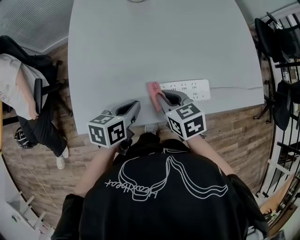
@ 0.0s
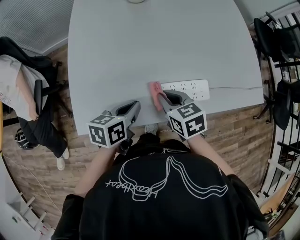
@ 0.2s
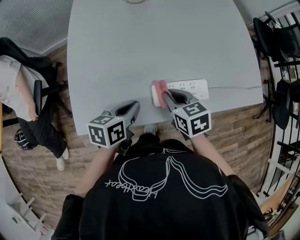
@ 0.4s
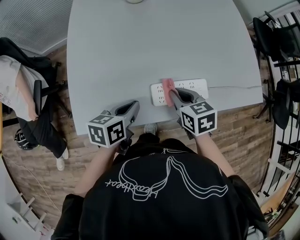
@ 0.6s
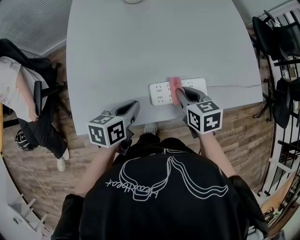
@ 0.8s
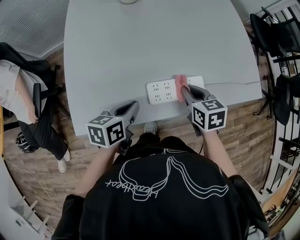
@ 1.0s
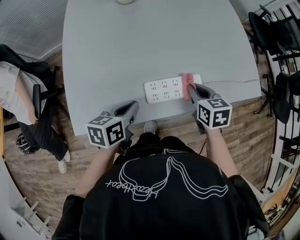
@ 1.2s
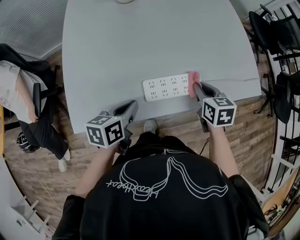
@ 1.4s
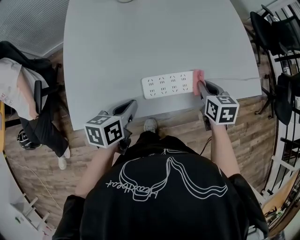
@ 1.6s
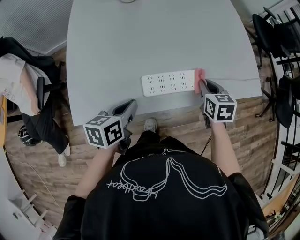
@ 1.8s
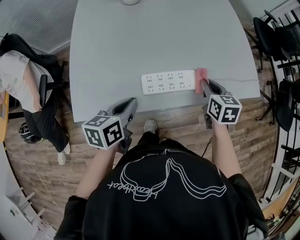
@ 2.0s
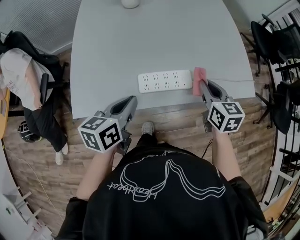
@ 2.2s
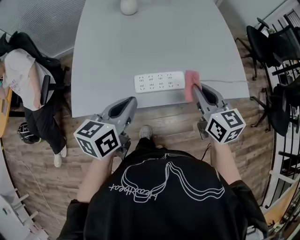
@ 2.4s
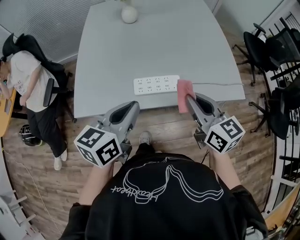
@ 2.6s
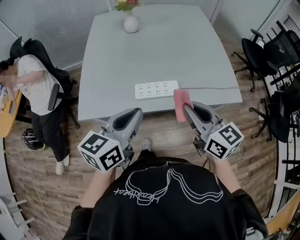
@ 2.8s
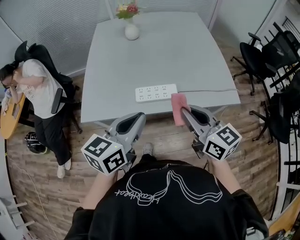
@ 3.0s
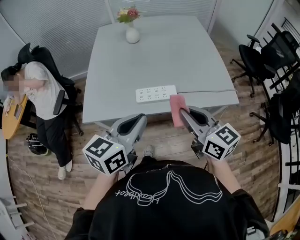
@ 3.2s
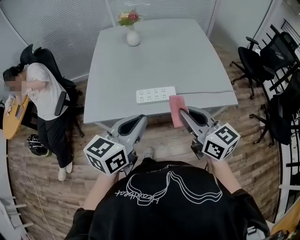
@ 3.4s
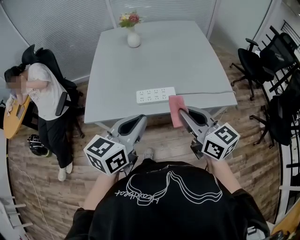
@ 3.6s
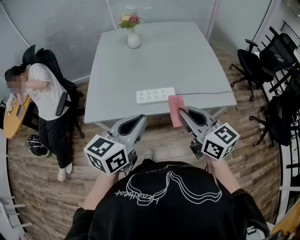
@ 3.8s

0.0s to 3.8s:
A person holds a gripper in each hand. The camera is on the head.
0.0s to 1.2s: The right gripper shifts approximately 15 cm to the right.
1.2s to 2.6s: The right gripper moves upward and backward, about 25 cm, and tips its fingers upward by about 30 degrees. The left gripper heads upward, to the right and backward, covering roughly 25 cm, and rotates approximately 30 degrees.
2.6s to 3.8s: Both grippers move backward and upward, roughly 15 cm.

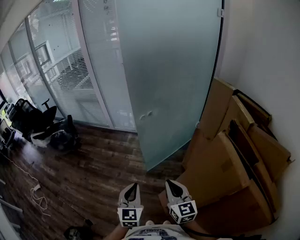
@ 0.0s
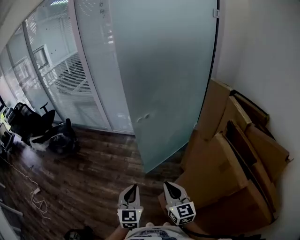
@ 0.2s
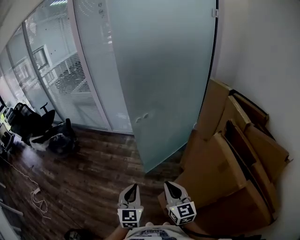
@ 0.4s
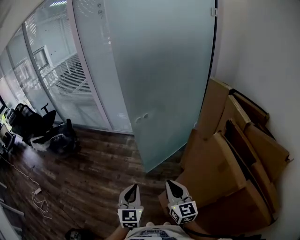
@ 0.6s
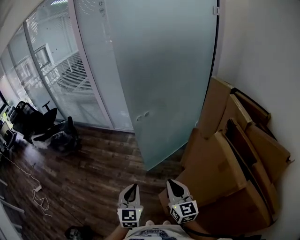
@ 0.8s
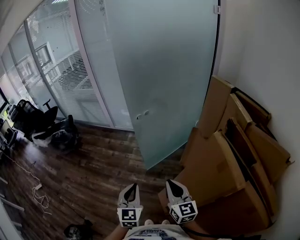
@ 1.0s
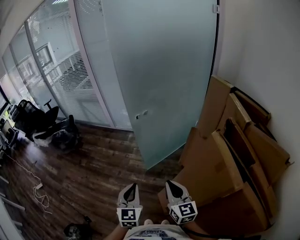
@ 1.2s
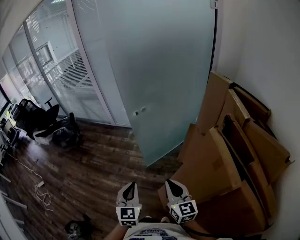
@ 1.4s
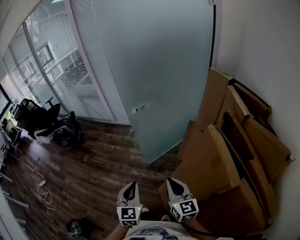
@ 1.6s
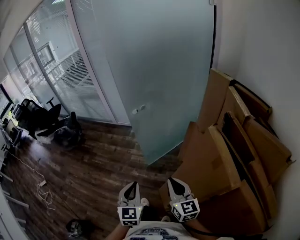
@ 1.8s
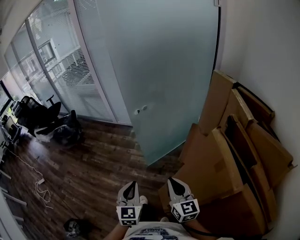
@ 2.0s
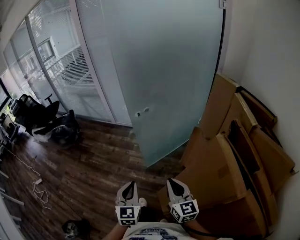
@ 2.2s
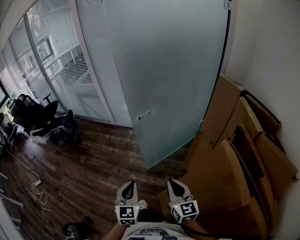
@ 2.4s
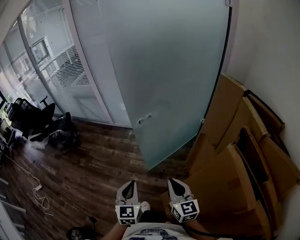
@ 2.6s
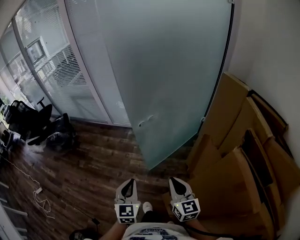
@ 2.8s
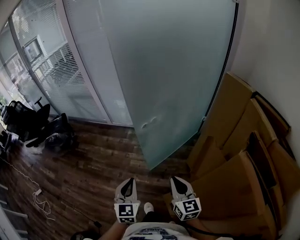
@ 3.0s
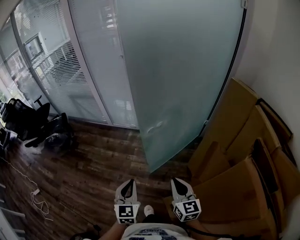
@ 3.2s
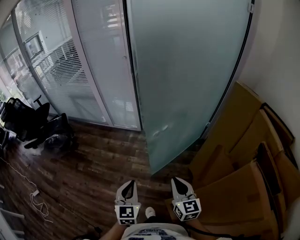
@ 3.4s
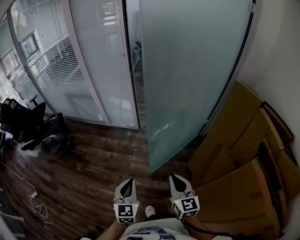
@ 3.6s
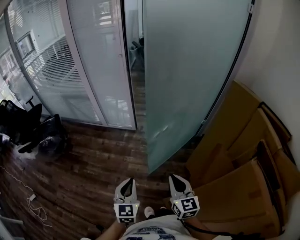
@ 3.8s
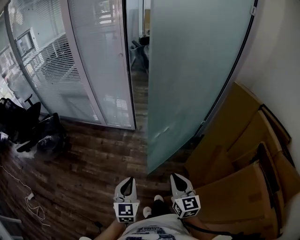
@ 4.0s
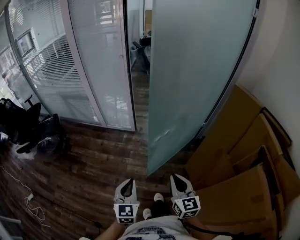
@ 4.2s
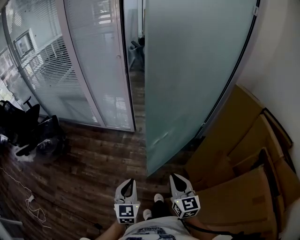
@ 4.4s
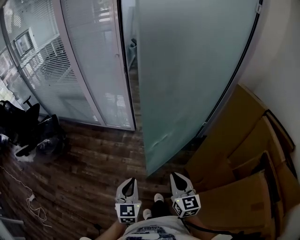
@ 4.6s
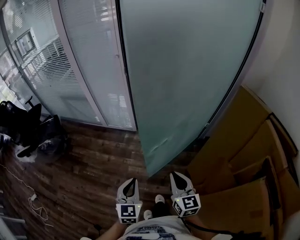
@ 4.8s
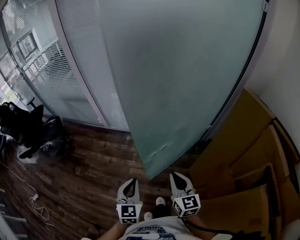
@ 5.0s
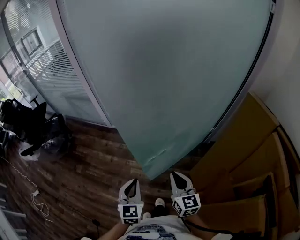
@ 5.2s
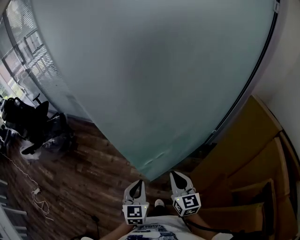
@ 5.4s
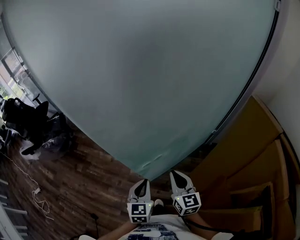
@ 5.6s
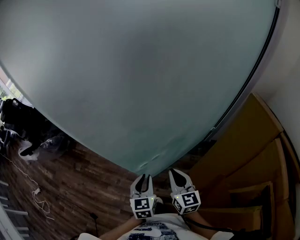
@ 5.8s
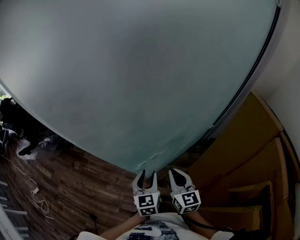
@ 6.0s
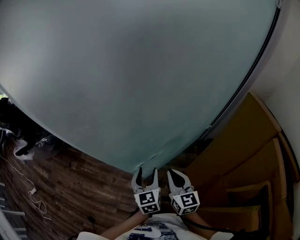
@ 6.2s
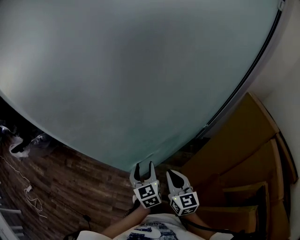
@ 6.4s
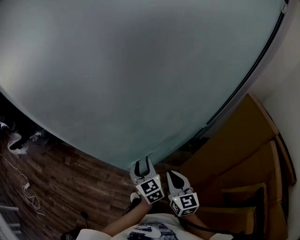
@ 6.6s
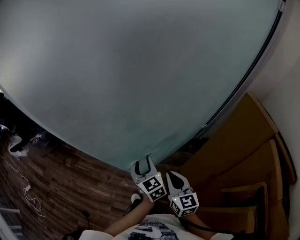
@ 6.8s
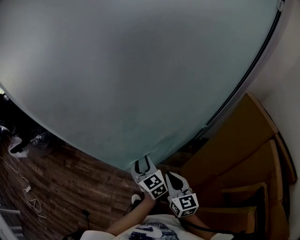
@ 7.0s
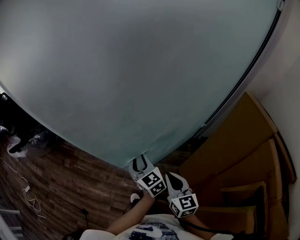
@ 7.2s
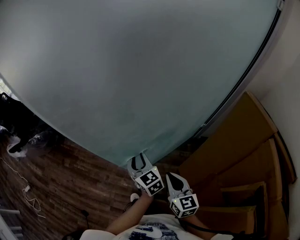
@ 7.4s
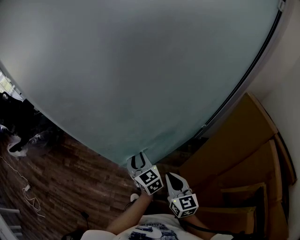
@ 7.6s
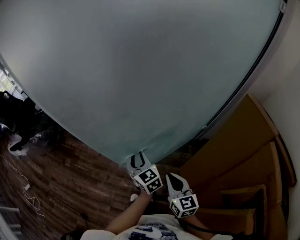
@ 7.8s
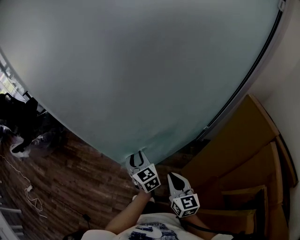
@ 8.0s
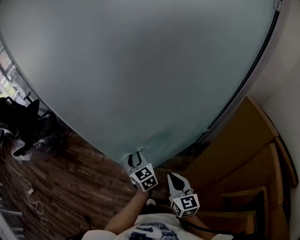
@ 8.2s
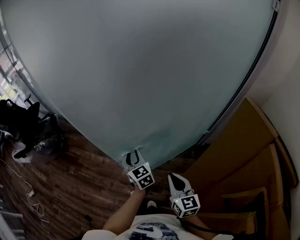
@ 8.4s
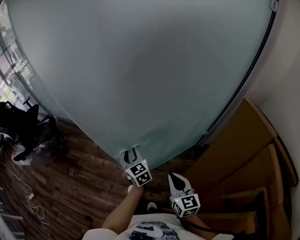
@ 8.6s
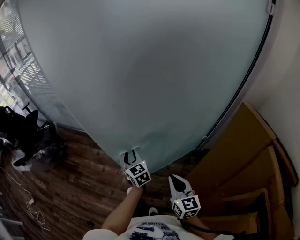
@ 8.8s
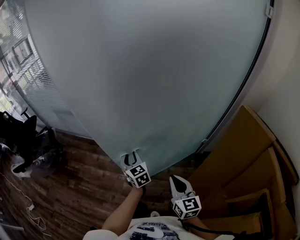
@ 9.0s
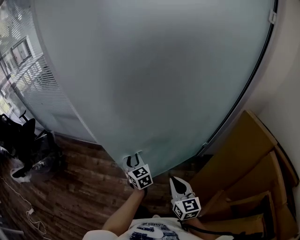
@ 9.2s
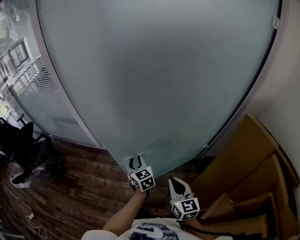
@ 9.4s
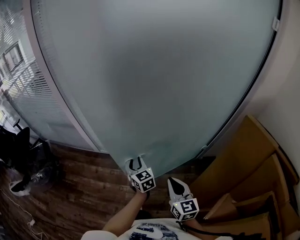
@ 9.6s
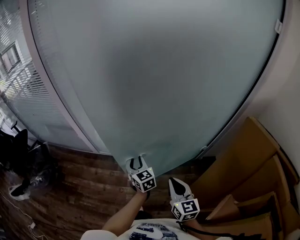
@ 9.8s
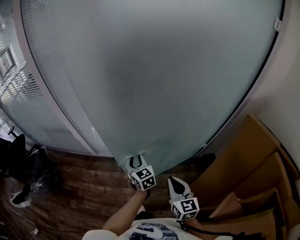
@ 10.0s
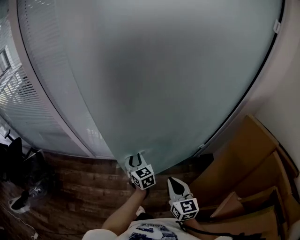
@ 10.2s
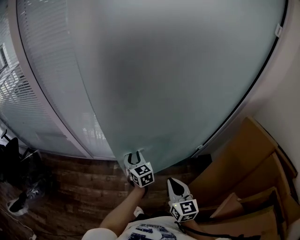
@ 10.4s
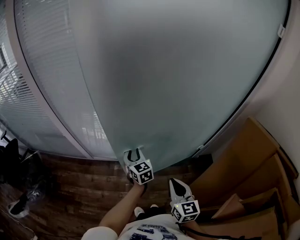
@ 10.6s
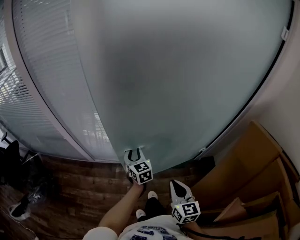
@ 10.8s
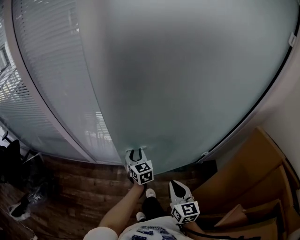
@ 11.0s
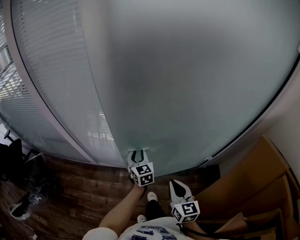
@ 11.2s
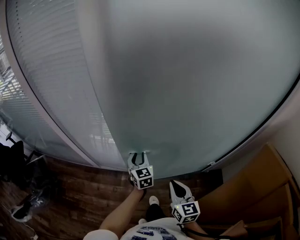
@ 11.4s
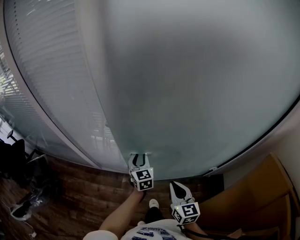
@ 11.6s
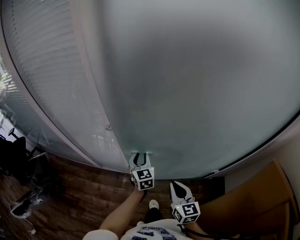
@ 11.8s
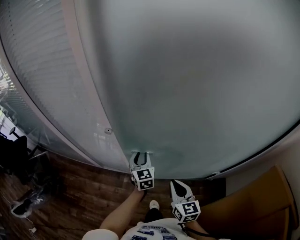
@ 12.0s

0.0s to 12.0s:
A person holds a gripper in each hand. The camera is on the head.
0.0s to 1.6s: Both grippers travel together to the right, approximately 5 cm.
1.6s to 3.0s: The grippers both shift forward by roughly 20 cm.
3.0s to 4.4s: The grippers both shift forward and to the left by about 10 cm.
4.4s to 6.0s: The left gripper travels to the right and forward by approximately 20 cm, and opens its fingers, while the right gripper is displaced forward and to the right by about 15 cm.
6.0s to 7.6s: The left gripper heads forward, covering some 10 cm, and swivels roughly 20 degrees.
7.6s to 9.0s: The right gripper goes some 5 cm forward; the left gripper shifts roughly 15 cm forward.
9.0s to 10.4s: The right gripper shifts some 15 cm forward and to the left. The left gripper moves forward, about 15 cm.
10.4s to 12.0s: The grippers both shift forward by some 25 cm.

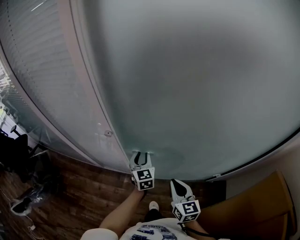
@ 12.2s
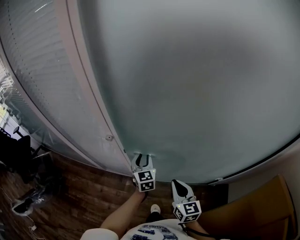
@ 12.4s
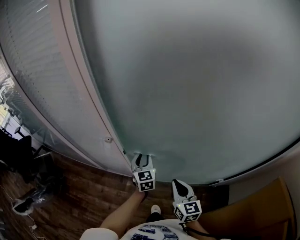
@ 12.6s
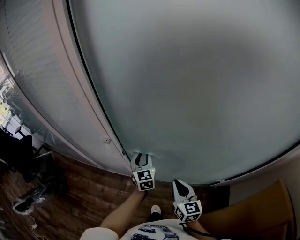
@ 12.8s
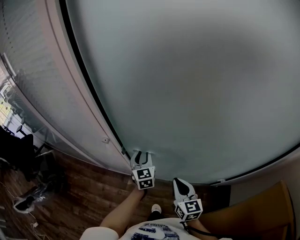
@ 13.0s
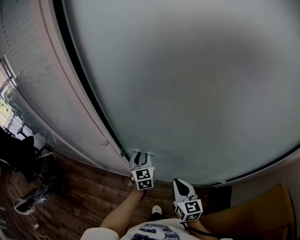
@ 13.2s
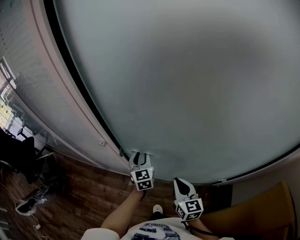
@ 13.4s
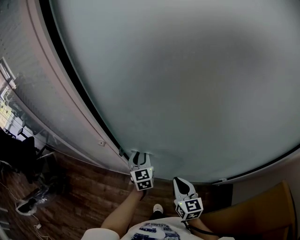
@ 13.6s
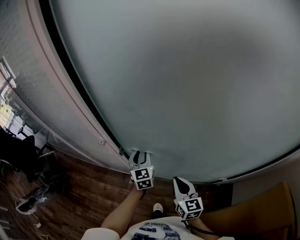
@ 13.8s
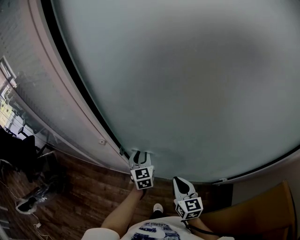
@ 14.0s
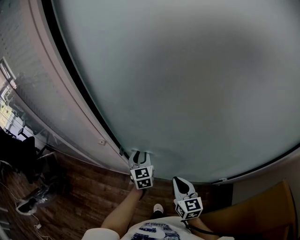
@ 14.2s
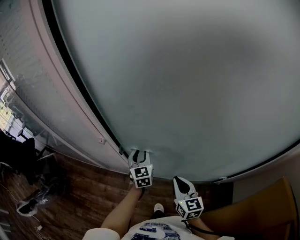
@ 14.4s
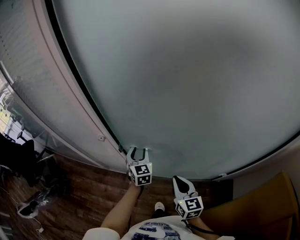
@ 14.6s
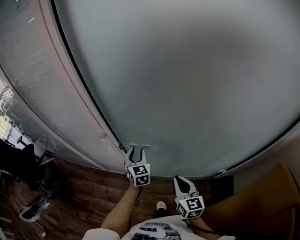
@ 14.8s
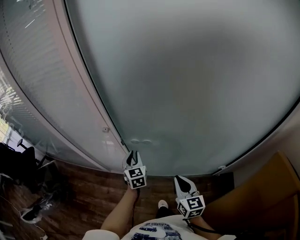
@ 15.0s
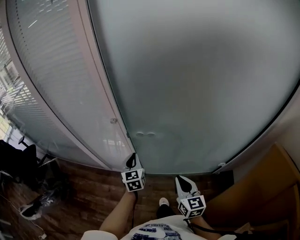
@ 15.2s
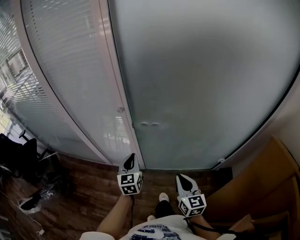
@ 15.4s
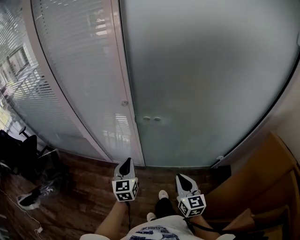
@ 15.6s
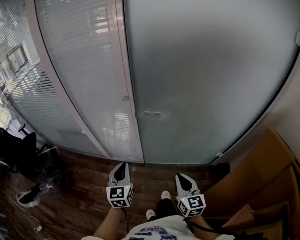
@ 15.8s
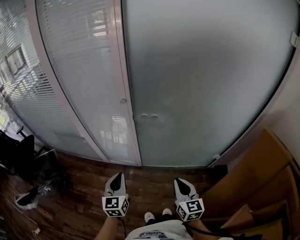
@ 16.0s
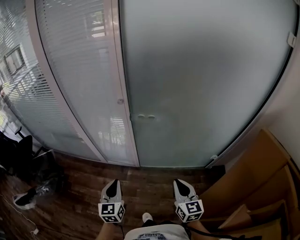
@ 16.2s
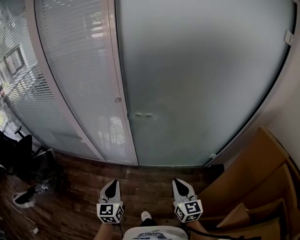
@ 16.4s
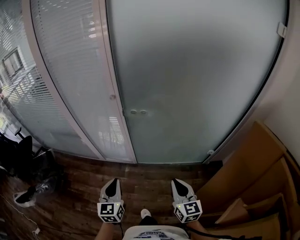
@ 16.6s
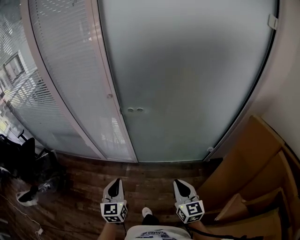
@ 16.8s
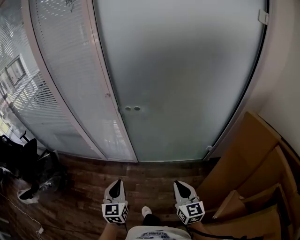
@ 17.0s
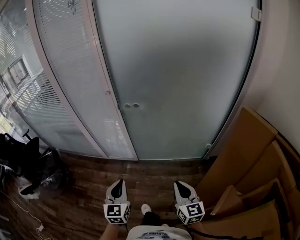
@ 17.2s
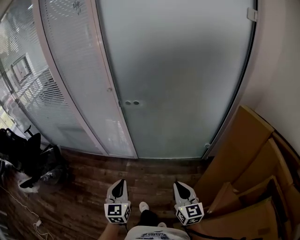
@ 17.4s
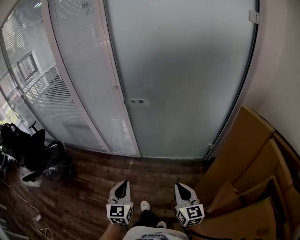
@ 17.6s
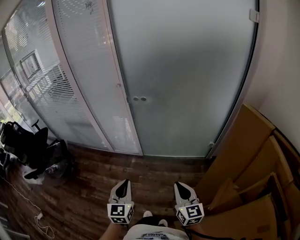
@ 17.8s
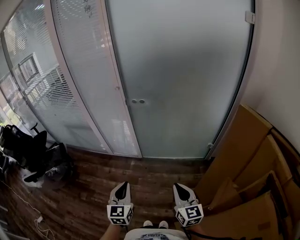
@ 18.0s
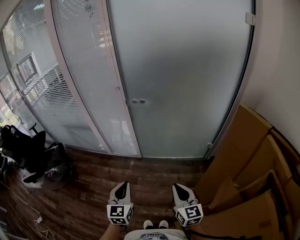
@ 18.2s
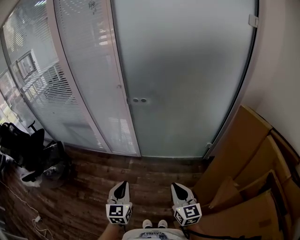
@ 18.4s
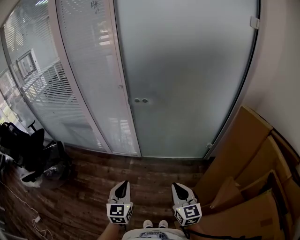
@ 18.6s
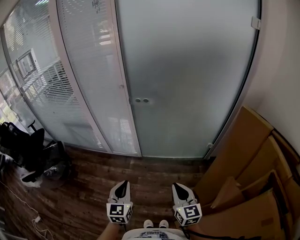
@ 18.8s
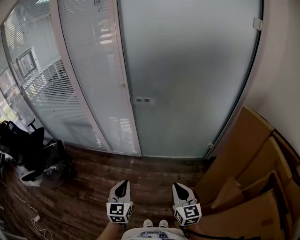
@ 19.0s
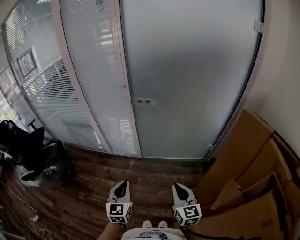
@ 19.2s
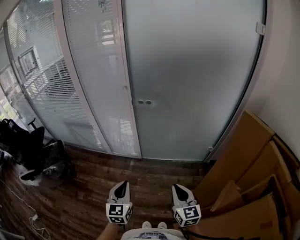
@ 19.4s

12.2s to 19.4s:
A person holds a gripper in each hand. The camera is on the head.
12.2s to 13.6s: The right gripper goes some 5 cm forward.
13.6s to 15.0s: The left gripper is displaced backward and to the left by about 10 cm; the right gripper shifts roughly 10 cm backward.
15.0s to 16.6s: The left gripper travels backward by some 35 cm; the right gripper travels backward by some 20 cm.
16.6s to 18.0s: Both grippers move backward, roughly 20 cm.
18.0s to 19.4s: The right gripper shifts by about 5 cm.

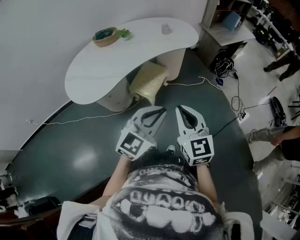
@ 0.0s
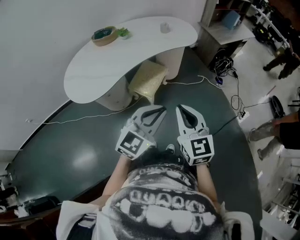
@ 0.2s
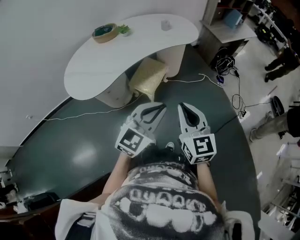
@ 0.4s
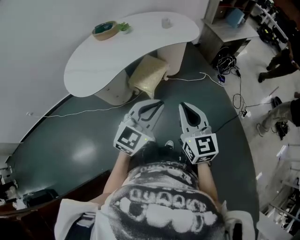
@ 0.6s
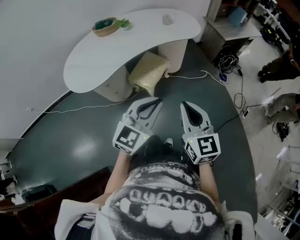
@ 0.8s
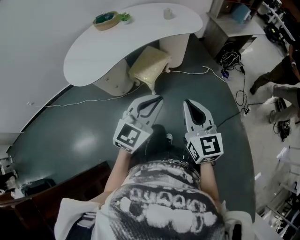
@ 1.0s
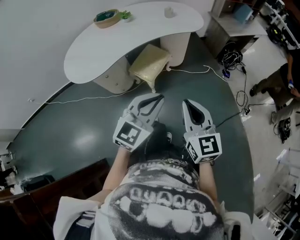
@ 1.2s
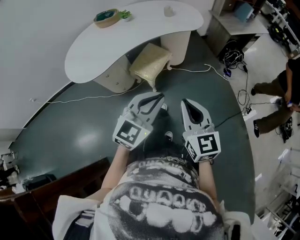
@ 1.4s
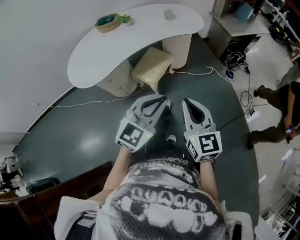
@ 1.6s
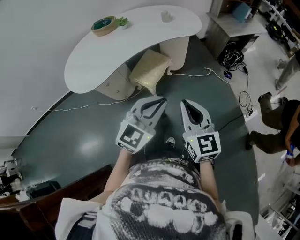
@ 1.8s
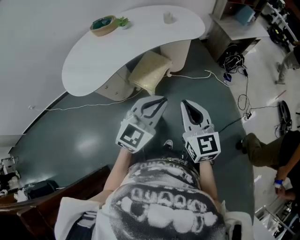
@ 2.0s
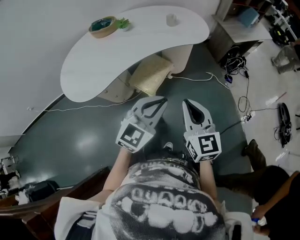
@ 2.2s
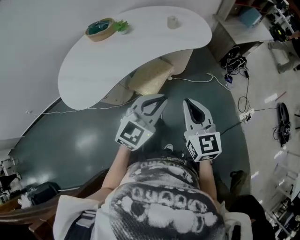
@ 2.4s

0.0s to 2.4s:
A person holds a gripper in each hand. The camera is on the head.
0.0s to 1.2s: The right gripper heads to the right, covering approximately 10 cm. Meanwhile the left gripper heads to the right, covering roughly 5 cm.
1.2s to 2.4s: Both grippers move forward, approximately 20 cm.
